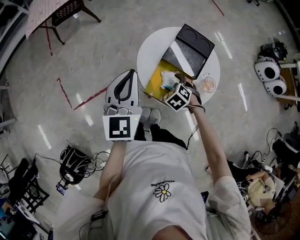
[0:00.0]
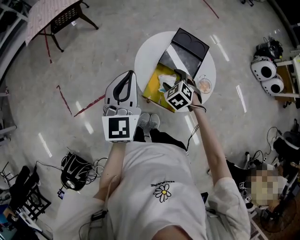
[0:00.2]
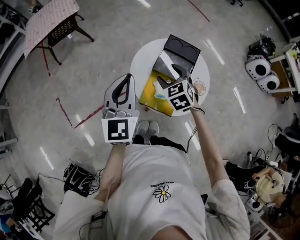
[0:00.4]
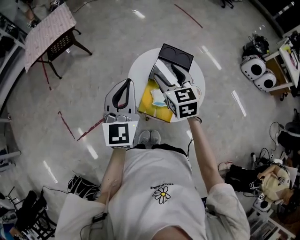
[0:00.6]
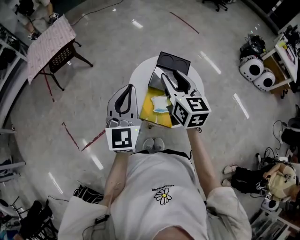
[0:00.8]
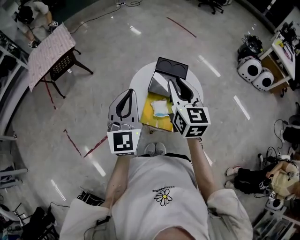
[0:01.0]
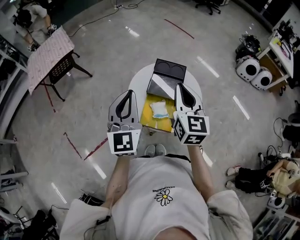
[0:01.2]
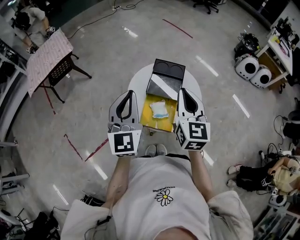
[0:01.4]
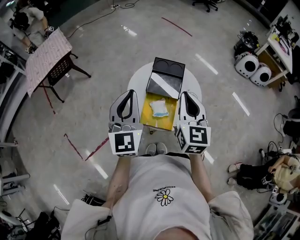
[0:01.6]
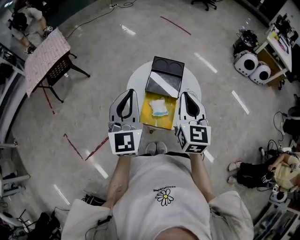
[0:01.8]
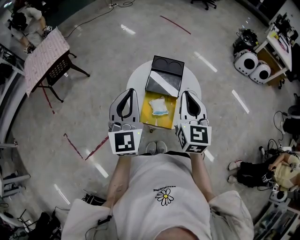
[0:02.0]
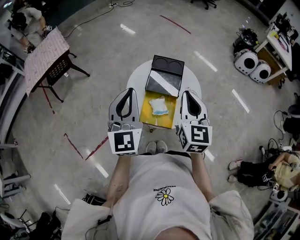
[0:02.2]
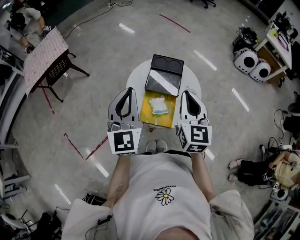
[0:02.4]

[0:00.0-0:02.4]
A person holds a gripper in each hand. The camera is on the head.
0:00.0 to 0:01.2: The right gripper goes roughly 35 cm upward, angles its fingers upward, by some 60 degrees, and closes its fingers, while the left gripper shifts about 10 cm upward and to the right.
0:01.2 to 0:02.4: The right gripper moves roughly 5 cm.

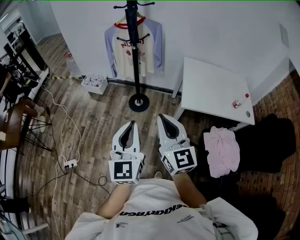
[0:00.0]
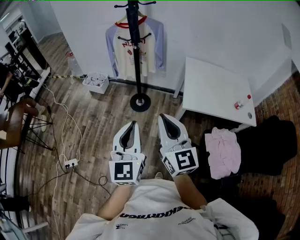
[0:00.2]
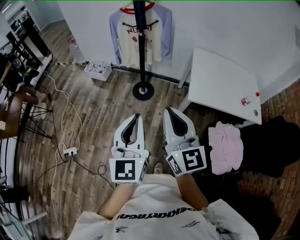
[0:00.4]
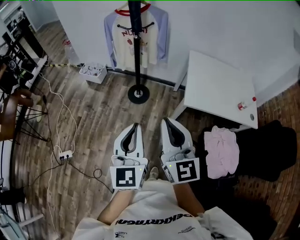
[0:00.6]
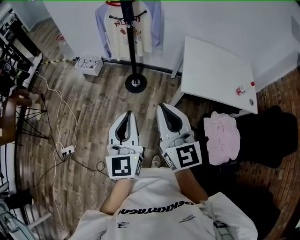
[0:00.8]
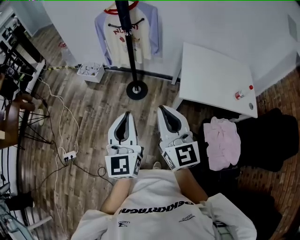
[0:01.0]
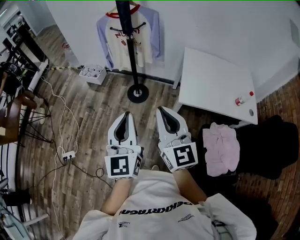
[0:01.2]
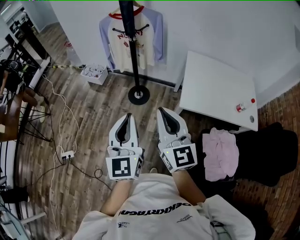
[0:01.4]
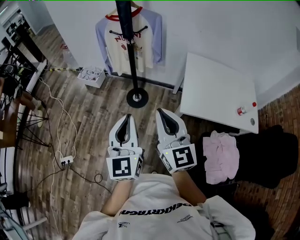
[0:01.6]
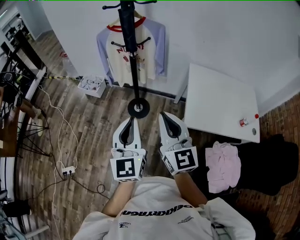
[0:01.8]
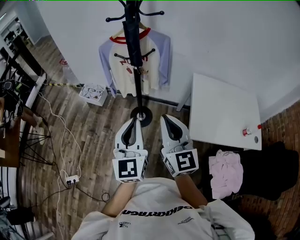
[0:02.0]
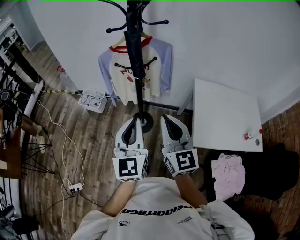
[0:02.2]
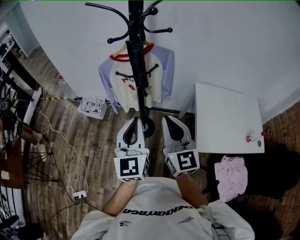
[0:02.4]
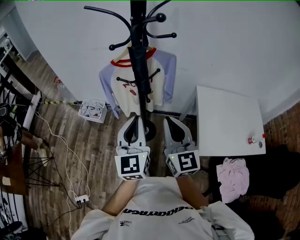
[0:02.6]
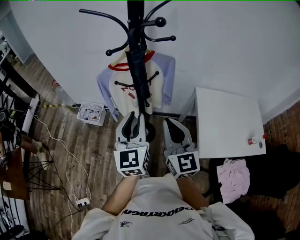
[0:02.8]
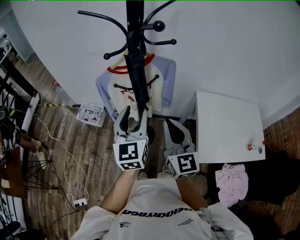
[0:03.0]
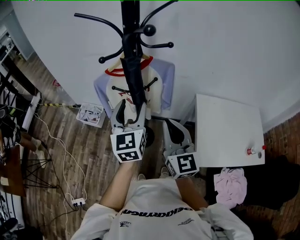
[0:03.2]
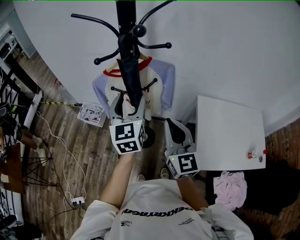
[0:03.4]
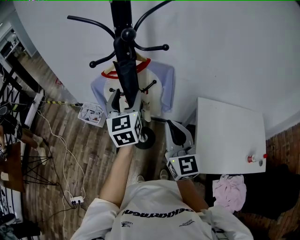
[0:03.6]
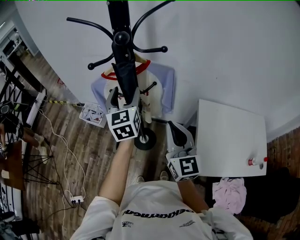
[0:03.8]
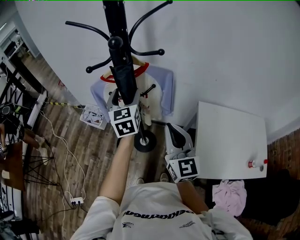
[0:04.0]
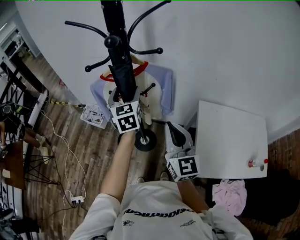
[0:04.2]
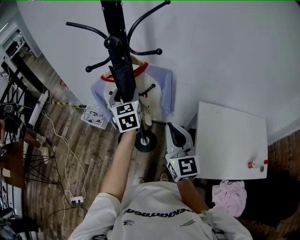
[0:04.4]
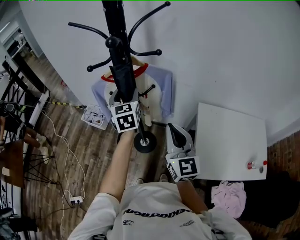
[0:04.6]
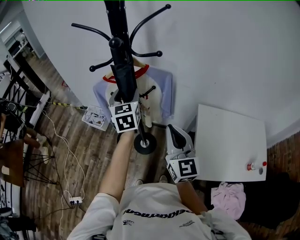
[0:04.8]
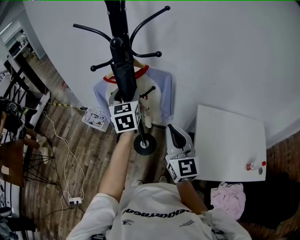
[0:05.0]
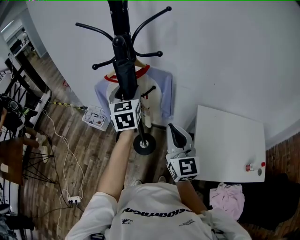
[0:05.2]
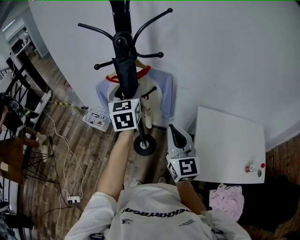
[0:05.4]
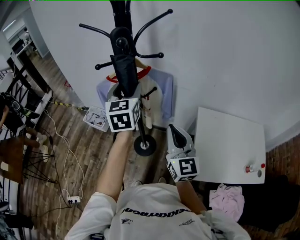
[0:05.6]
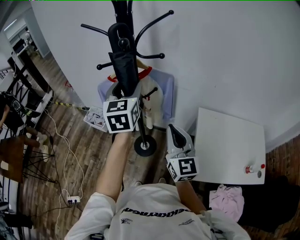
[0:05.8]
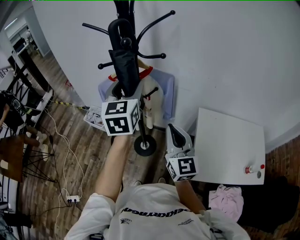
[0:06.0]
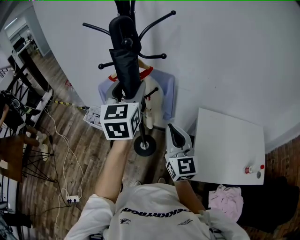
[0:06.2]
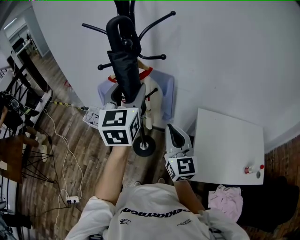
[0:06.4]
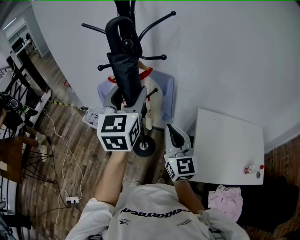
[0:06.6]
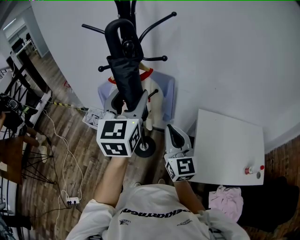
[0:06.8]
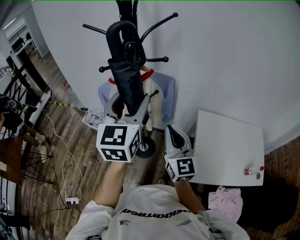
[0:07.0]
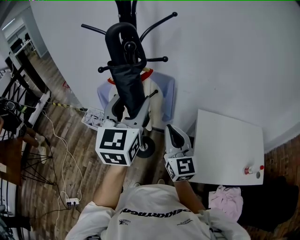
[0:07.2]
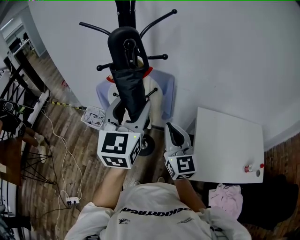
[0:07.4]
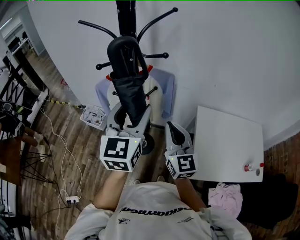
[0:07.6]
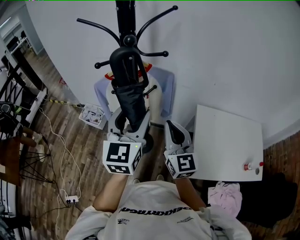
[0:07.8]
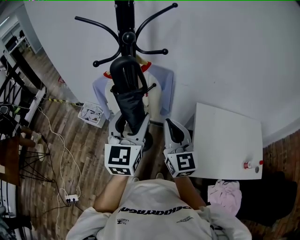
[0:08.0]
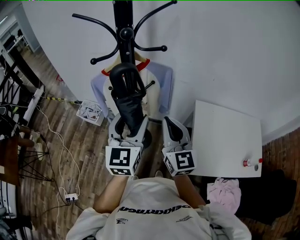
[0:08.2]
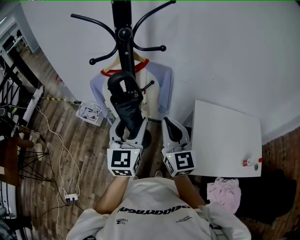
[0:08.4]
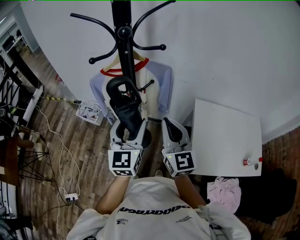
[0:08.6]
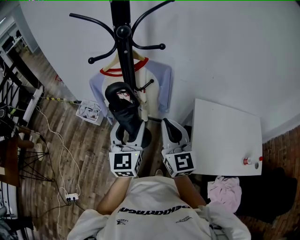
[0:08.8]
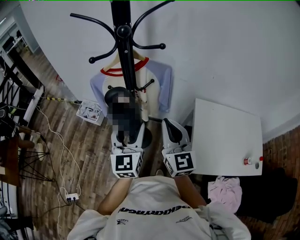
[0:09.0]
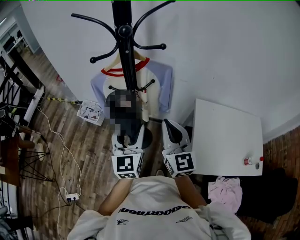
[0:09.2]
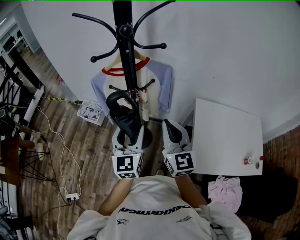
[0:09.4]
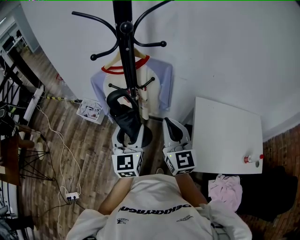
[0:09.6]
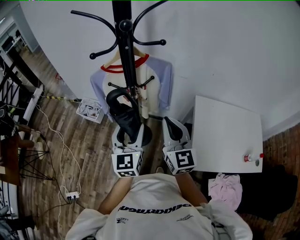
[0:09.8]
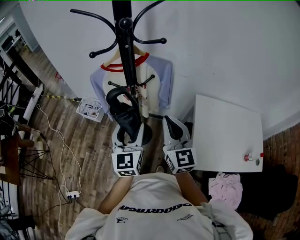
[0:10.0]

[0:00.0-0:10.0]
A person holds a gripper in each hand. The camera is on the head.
0:00.0 to 0:01.4: The left gripper moves forward and to the right, roughly 10 cm; the right gripper travels to the right and forward by some 10 cm.
0:01.4 to 0:02.8: Both grippers travel together forward, roughly 40 cm.
0:02.8 to 0:04.2: The right gripper shifts roughly 10 cm to the right and forward, while the left gripper heads forward, covering some 20 cm, and opens.
0:04.2 to 0:05.8: The left gripper heads upward and backward, covering approximately 15 cm.
0:05.8 to 0:07.2: The left gripper travels backward by some 10 cm.
0:07.2 to 0:08.6: The left gripper shifts about 15 cm downward.
0:08.6 to 0:10.0: The left gripper shifts by some 5 cm.

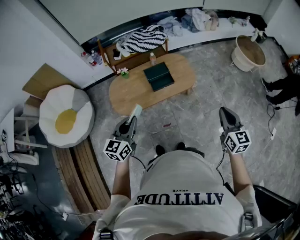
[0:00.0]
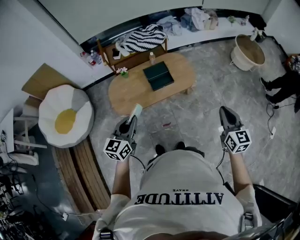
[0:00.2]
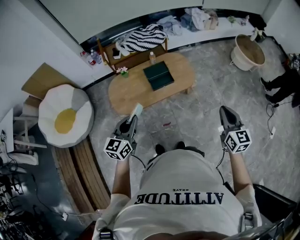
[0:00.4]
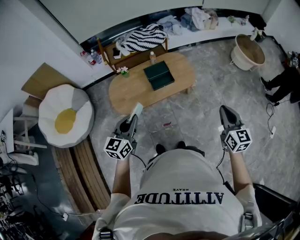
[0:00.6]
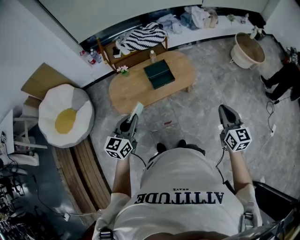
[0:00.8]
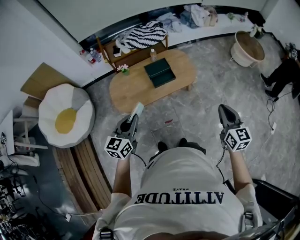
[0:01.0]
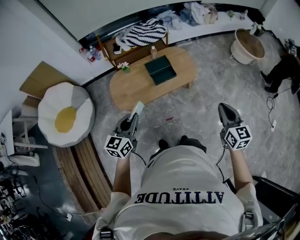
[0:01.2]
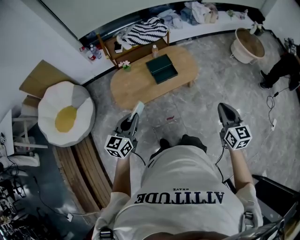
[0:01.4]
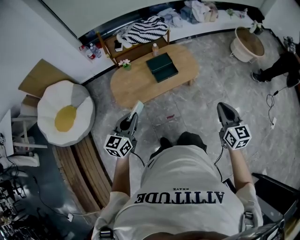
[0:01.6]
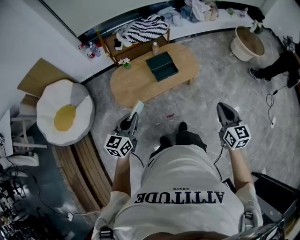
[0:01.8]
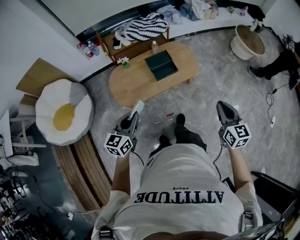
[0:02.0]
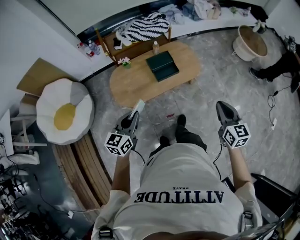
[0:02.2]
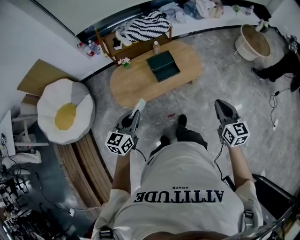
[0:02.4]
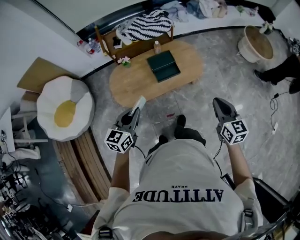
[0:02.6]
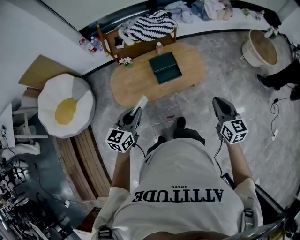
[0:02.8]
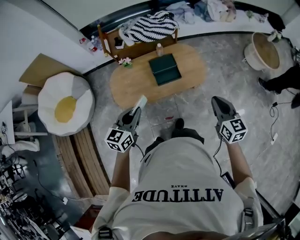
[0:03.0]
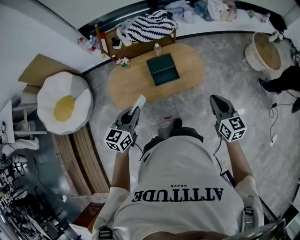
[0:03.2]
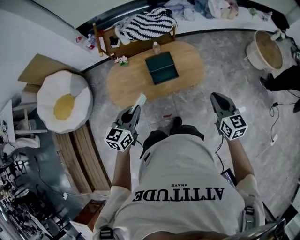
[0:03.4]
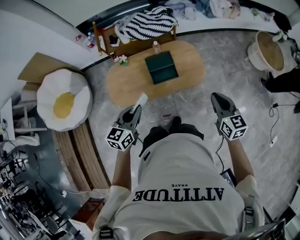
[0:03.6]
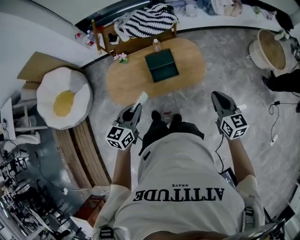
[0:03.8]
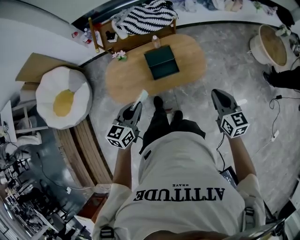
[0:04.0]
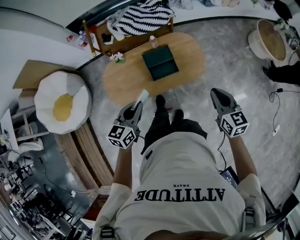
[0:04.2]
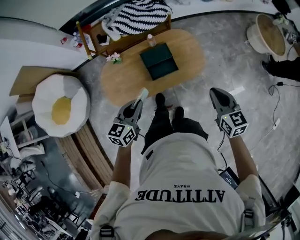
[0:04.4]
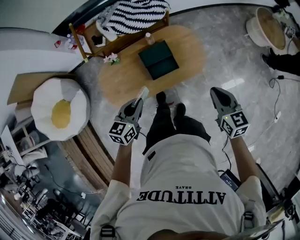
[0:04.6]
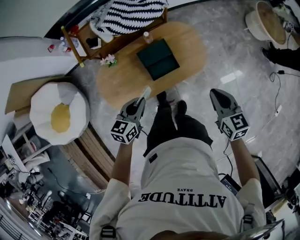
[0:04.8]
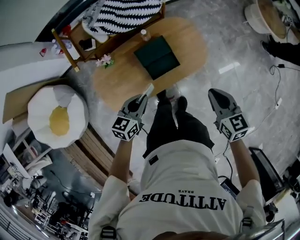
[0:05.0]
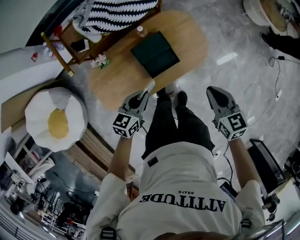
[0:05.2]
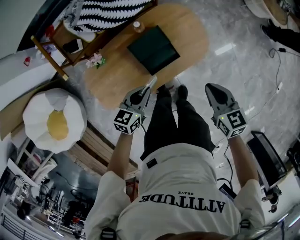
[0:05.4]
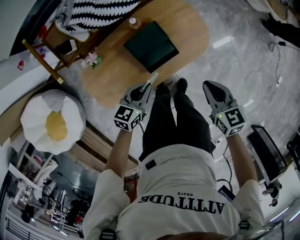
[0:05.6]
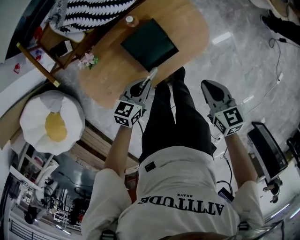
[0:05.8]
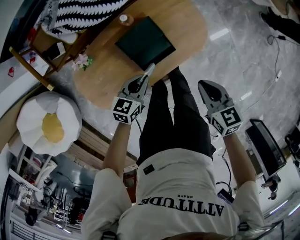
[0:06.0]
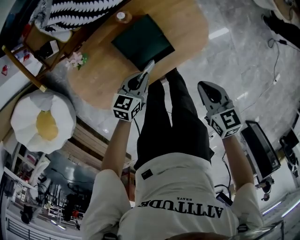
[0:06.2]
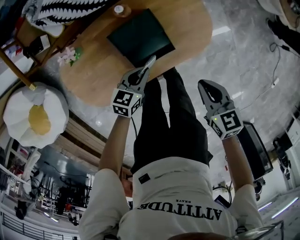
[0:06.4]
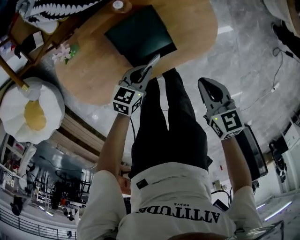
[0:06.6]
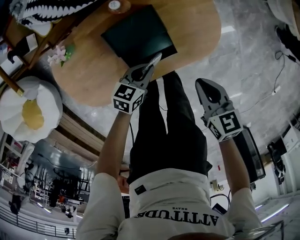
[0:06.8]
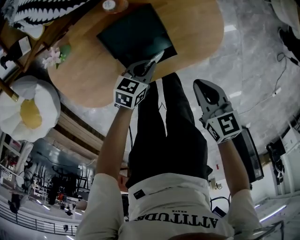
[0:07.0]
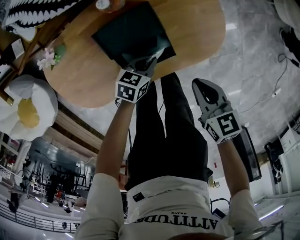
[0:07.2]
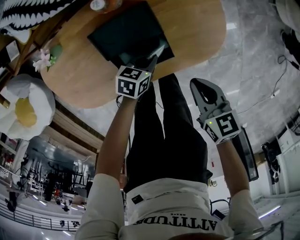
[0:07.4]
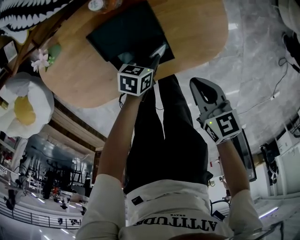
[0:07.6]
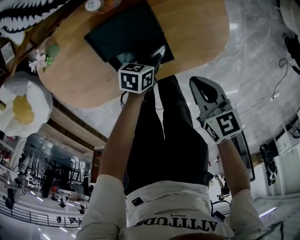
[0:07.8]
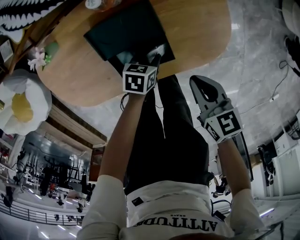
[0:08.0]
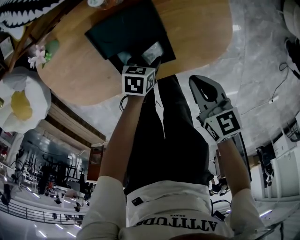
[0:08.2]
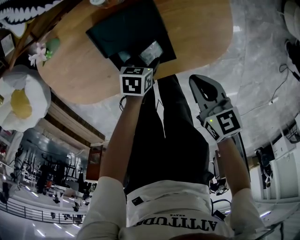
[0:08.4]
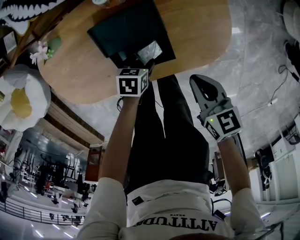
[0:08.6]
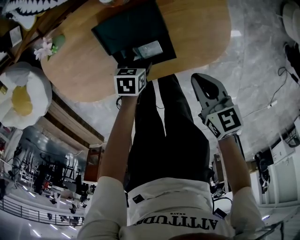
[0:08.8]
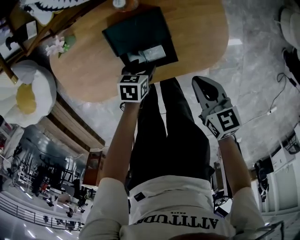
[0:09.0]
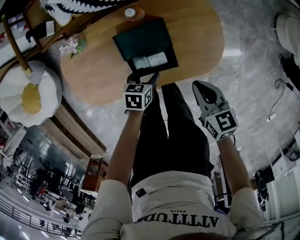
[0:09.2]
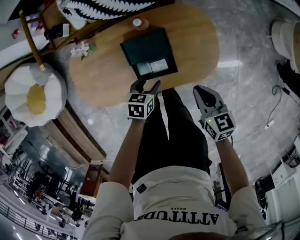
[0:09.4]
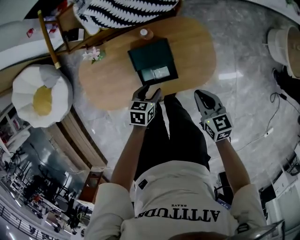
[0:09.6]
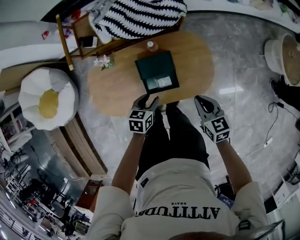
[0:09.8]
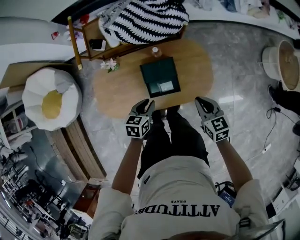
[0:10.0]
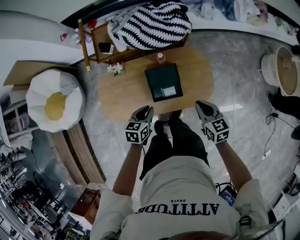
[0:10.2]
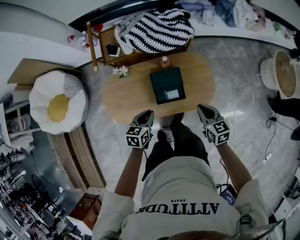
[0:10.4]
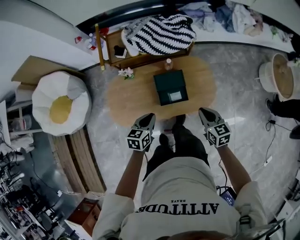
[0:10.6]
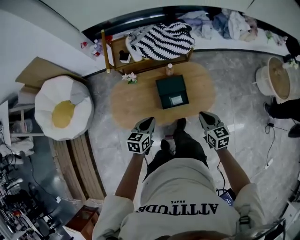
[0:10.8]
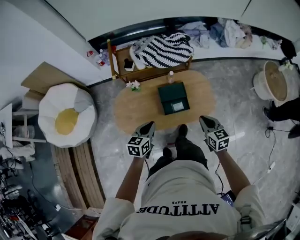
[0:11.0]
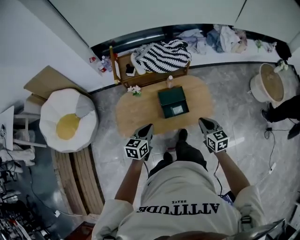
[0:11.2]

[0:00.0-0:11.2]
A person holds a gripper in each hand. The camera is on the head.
0:00.0 to 0:01.6: The grippers both shift to the left by some 10 cm.
0:01.6 to 0:03.2: The right gripper heads forward, covering some 25 cm. Meanwhile the left gripper moves forward and to the right, about 20 cm.
0:03.2 to 0:04.8: Both grippers move forward and downward, about 20 cm.
0:04.8 to 0:06.4: The left gripper shifts roughly 35 cm downward and forward; the right gripper moves downward, some 25 cm.
0:06.4 to 0:08.0: The left gripper heads downward and to the right, covering approximately 20 cm, and changes its angle by approximately 30 degrees. The right gripper heads downward and forward, covering about 15 cm.
0:08.0 to 0:09.6: Both grippers move upward, roughly 20 cm. The left gripper opens its fingers.
0:09.6 to 0:11.2: The two grippers go some 35 cm upward, backward and to the left. The left gripper turns by about 30 degrees, and closes up.
